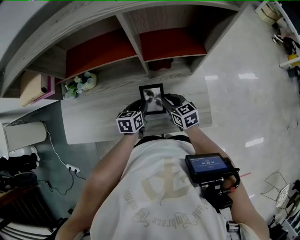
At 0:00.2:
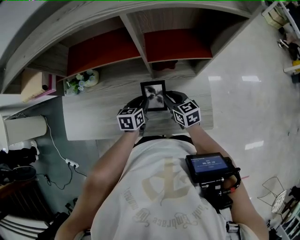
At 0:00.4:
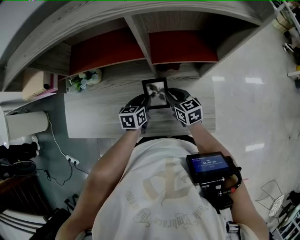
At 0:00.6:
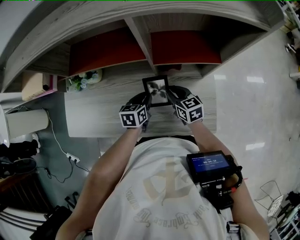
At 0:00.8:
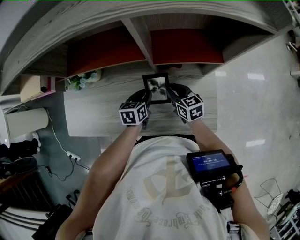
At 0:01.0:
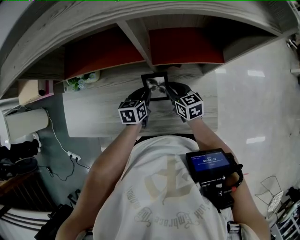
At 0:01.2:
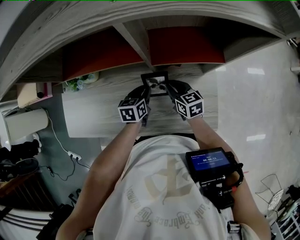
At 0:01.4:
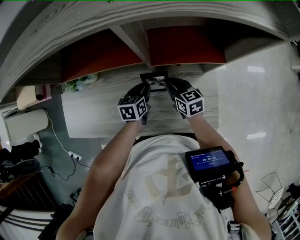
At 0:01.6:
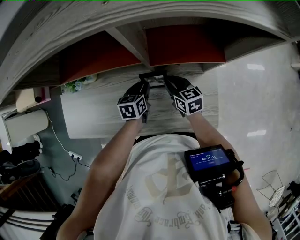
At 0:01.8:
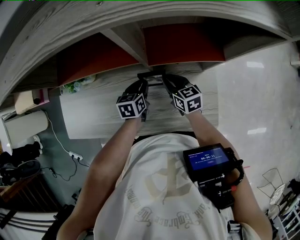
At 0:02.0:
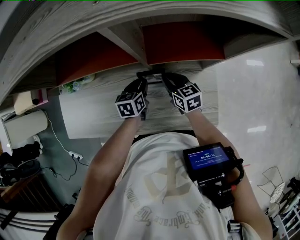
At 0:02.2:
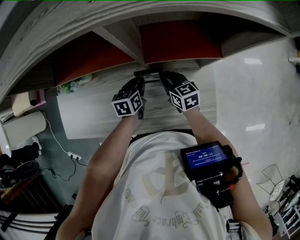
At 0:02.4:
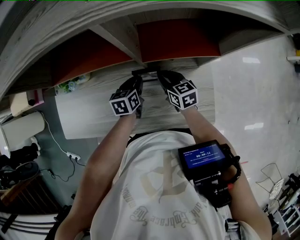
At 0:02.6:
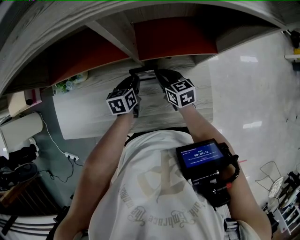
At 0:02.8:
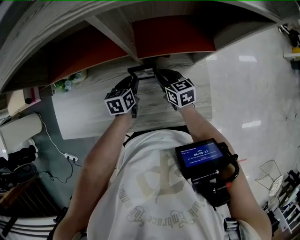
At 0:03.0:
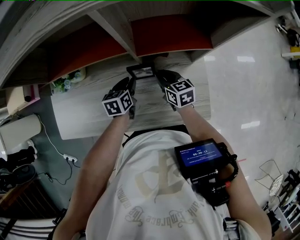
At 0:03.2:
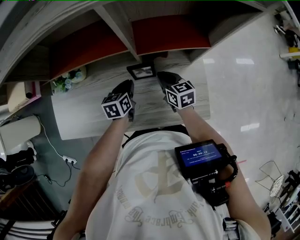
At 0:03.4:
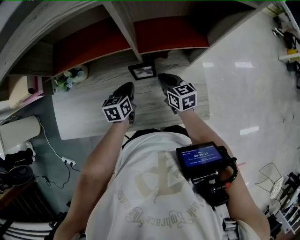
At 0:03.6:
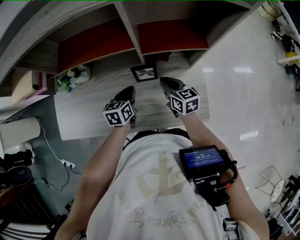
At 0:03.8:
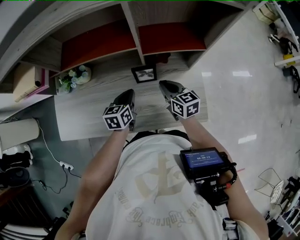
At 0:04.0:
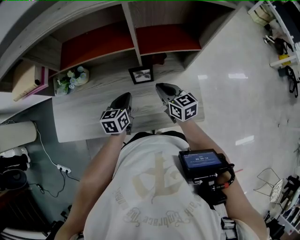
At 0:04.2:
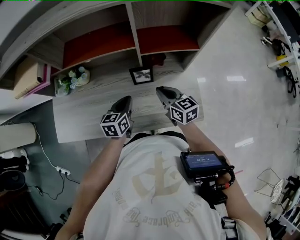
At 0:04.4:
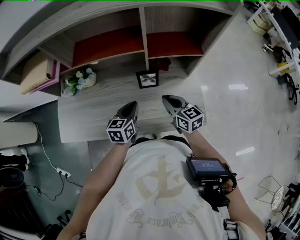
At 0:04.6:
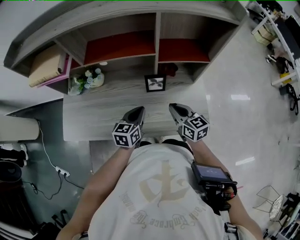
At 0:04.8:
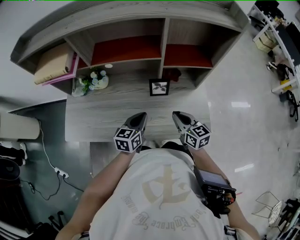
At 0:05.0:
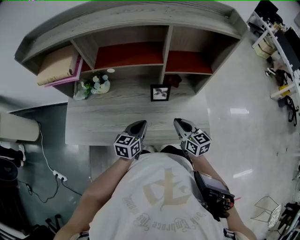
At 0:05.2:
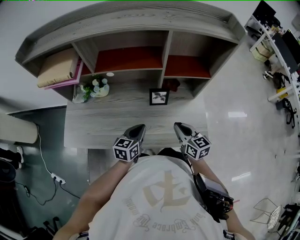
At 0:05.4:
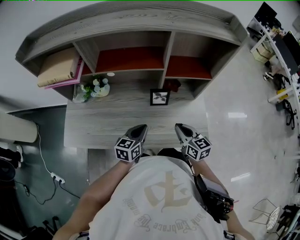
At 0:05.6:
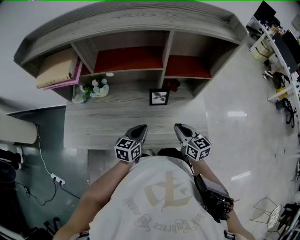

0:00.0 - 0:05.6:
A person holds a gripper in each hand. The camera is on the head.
0:00.0 - 0:01.4: The two grippers go some 10 cm forward.
0:01.4 - 0:02.8: There are only small adjustments of the grippers.
0:02.8 - 0:04.2: The right gripper heads upward and backward, covering approximately 15 cm, while the left gripper goes some 15 cm backward and upward, and closes.
0:04.2 - 0:05.6: The two grippers go approximately 10 cm backward.

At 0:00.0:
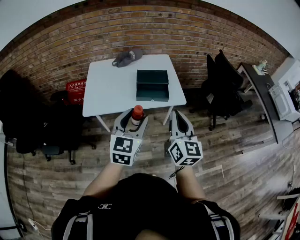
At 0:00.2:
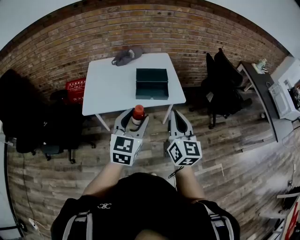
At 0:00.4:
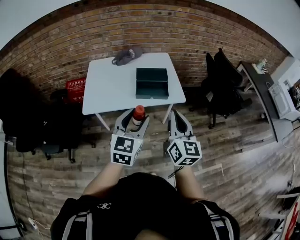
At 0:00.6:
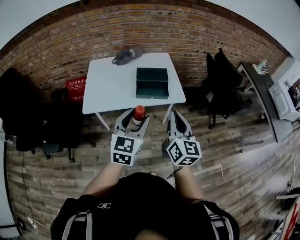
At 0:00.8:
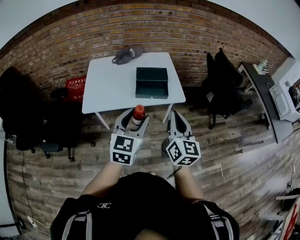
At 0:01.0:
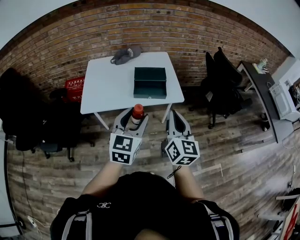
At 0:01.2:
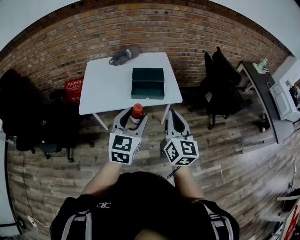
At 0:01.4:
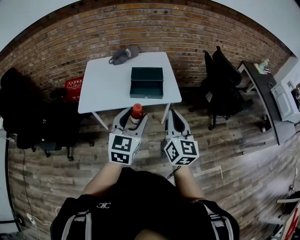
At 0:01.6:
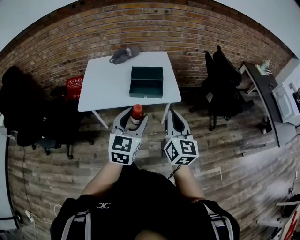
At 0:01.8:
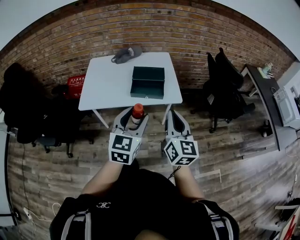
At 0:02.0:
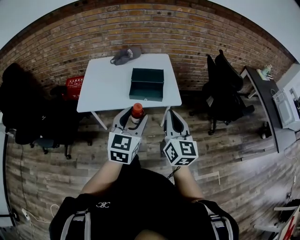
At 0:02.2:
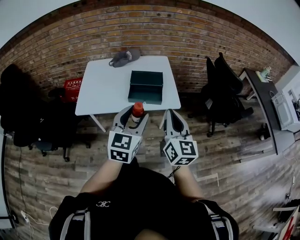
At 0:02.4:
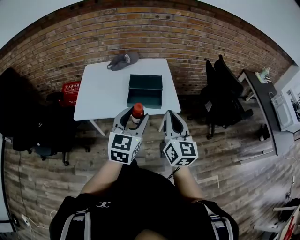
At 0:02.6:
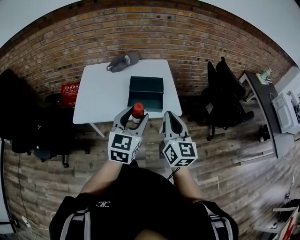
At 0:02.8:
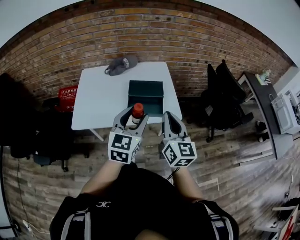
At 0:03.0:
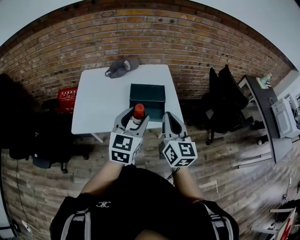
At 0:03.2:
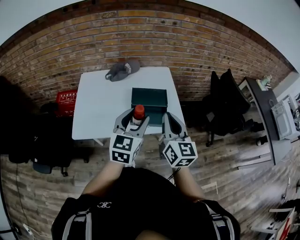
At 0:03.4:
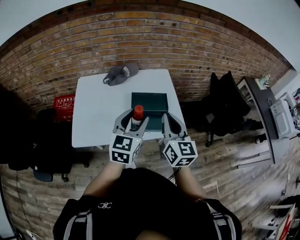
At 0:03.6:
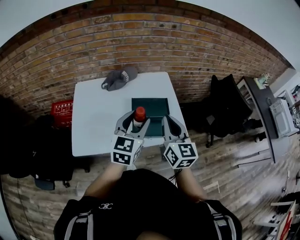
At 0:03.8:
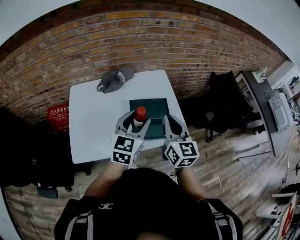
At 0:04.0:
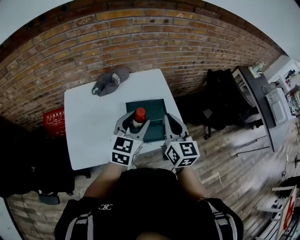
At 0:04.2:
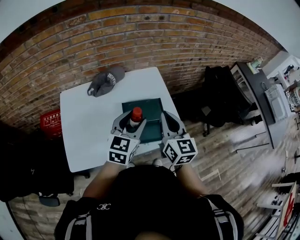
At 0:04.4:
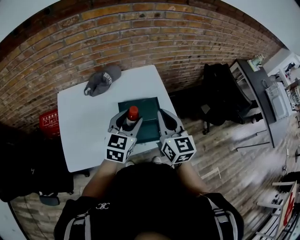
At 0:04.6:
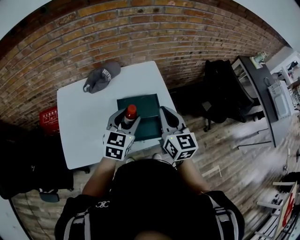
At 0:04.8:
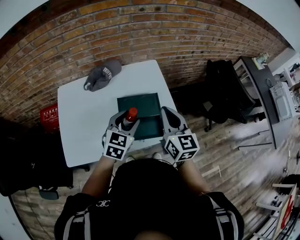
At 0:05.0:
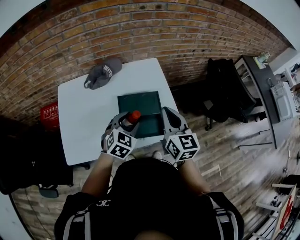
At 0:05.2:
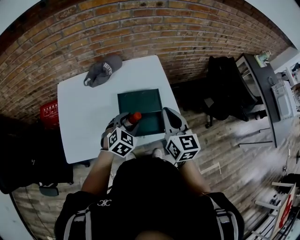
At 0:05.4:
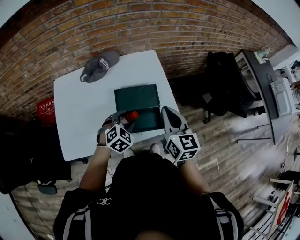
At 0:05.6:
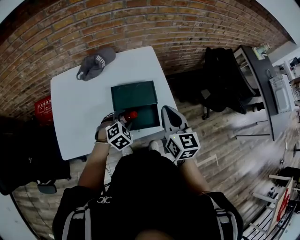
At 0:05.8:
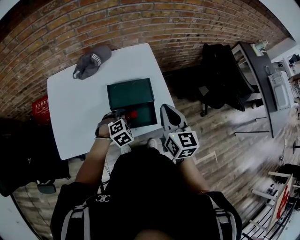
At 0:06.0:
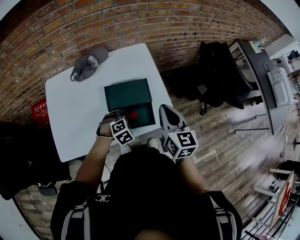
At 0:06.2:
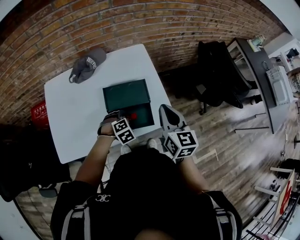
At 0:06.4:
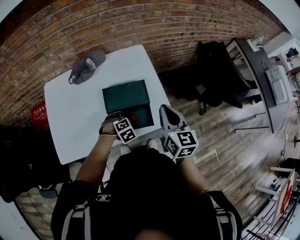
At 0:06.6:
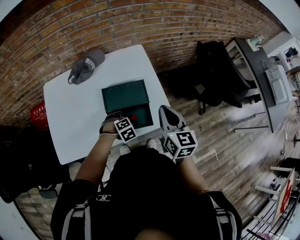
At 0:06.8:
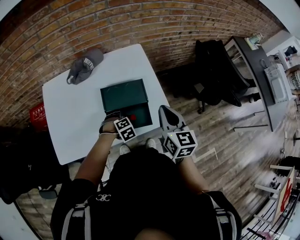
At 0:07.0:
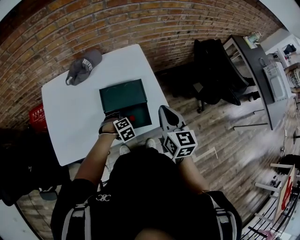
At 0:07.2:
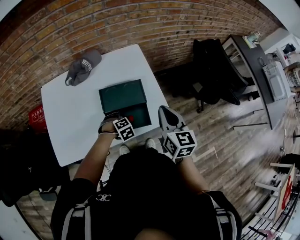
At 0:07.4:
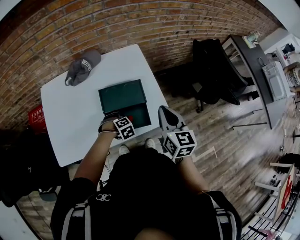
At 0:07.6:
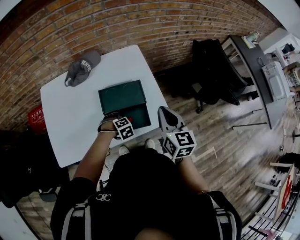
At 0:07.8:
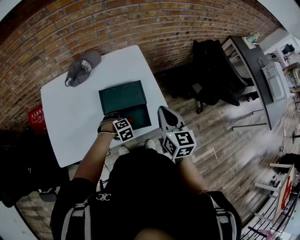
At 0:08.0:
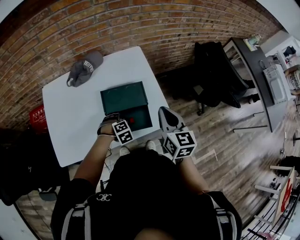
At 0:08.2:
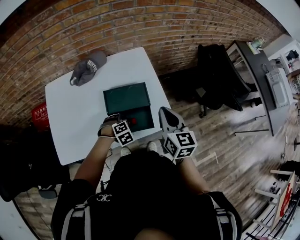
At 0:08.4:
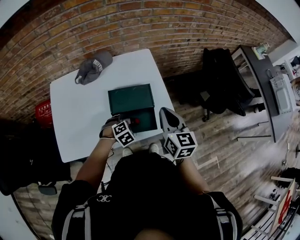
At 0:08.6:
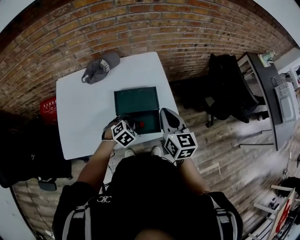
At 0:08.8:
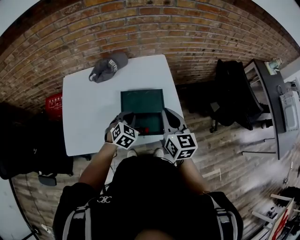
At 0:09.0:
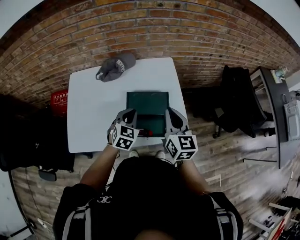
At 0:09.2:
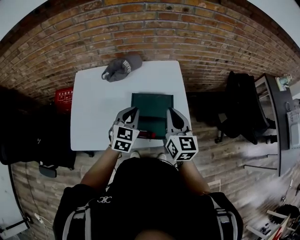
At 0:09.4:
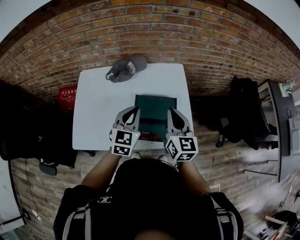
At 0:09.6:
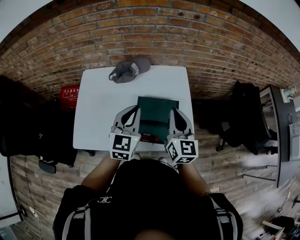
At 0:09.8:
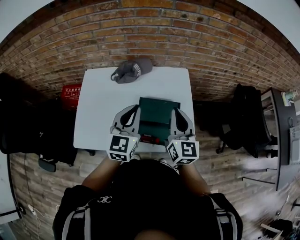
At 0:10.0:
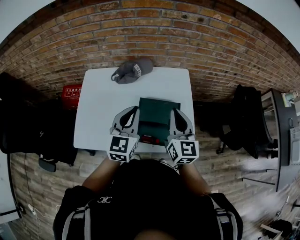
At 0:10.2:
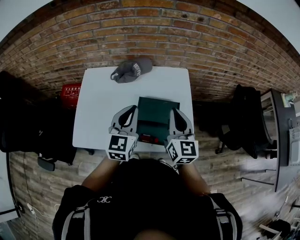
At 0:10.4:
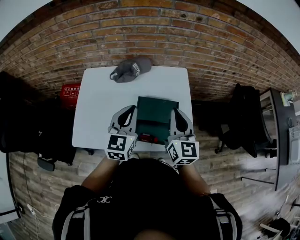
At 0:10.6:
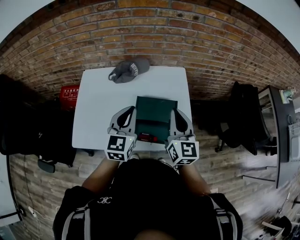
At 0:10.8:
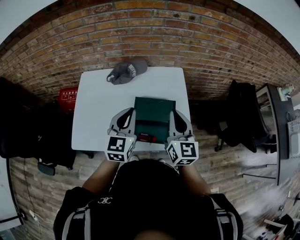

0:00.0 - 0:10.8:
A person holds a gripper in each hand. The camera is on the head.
0:00.0 - 0:01.6: The grippers both shift to the right by approximately 5 cm.
0:01.6 - 0:03.0: Both grippers travel together forward, approximately 15 cm.
0:03.0 - 0:04.6: The left gripper moves forward and downward, about 25 cm. The right gripper shifts approximately 20 cm forward.
0:04.6 - 0:06.2: The left gripper is displaced downward by roughly 20 cm, and tips its fingers downward by some 50 degrees. Meanwhile the right gripper goes approximately 10 cm to the right and downward.
0:06.2 - 0:07.8: The left gripper is displaced downward by about 5 cm.
0:07.8 - 0:09.2: The left gripper heads upward, covering about 20 cm, points its fingers some 50 degrees further upward, and closes its fingers; the right gripper ends up some 10 cm from where it was.
0:09.2 - 0:10.8: The left gripper is displaced upward by some 10 cm.

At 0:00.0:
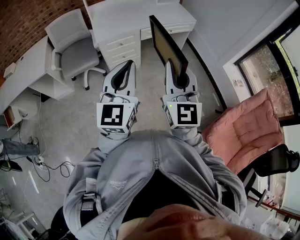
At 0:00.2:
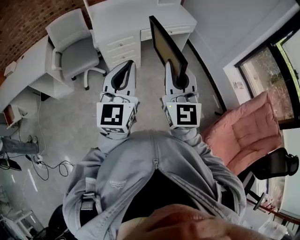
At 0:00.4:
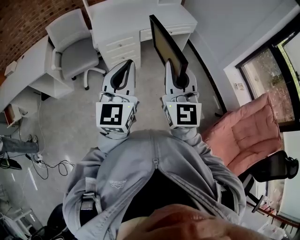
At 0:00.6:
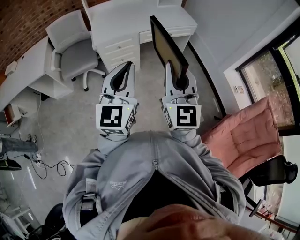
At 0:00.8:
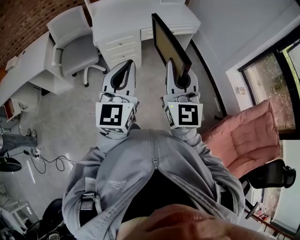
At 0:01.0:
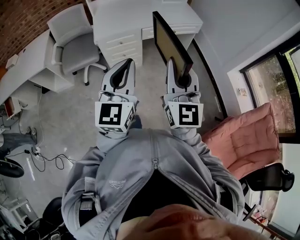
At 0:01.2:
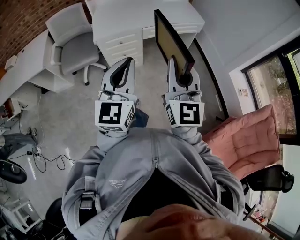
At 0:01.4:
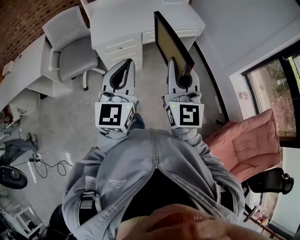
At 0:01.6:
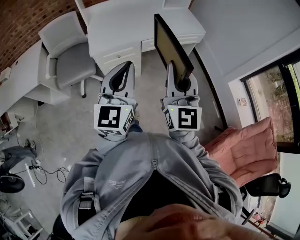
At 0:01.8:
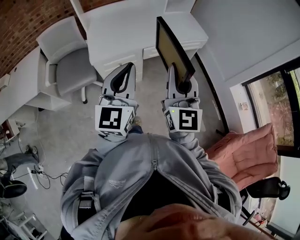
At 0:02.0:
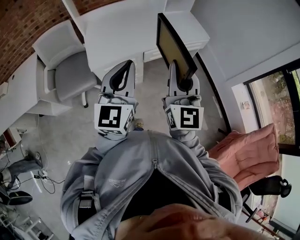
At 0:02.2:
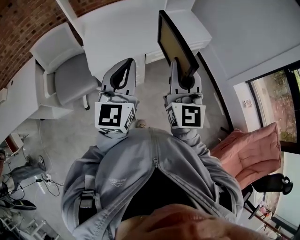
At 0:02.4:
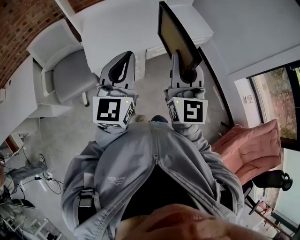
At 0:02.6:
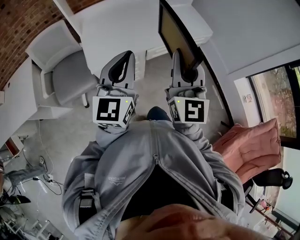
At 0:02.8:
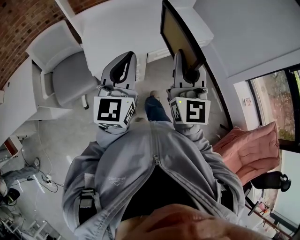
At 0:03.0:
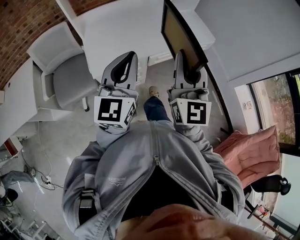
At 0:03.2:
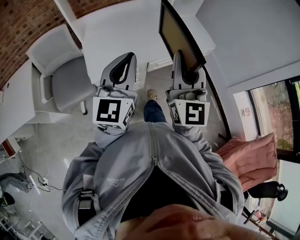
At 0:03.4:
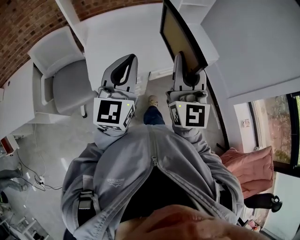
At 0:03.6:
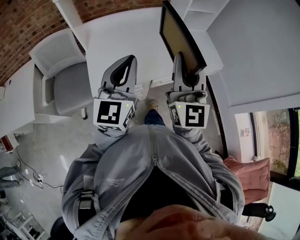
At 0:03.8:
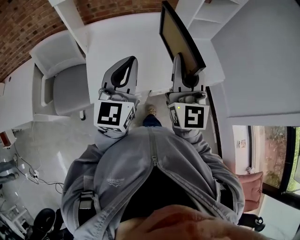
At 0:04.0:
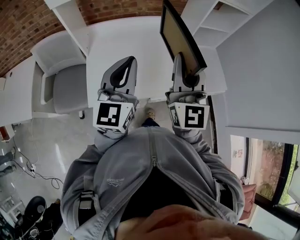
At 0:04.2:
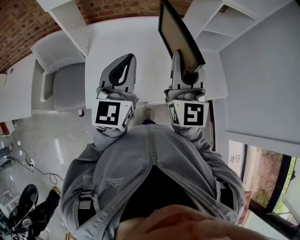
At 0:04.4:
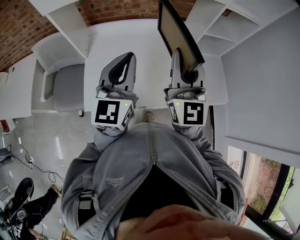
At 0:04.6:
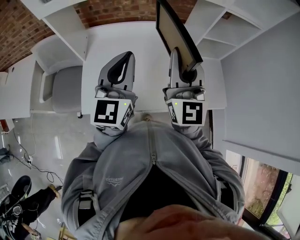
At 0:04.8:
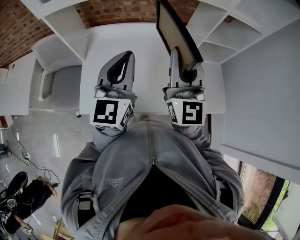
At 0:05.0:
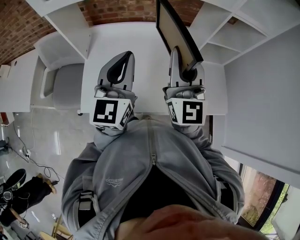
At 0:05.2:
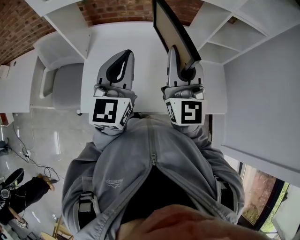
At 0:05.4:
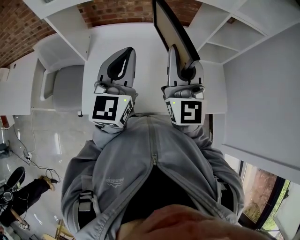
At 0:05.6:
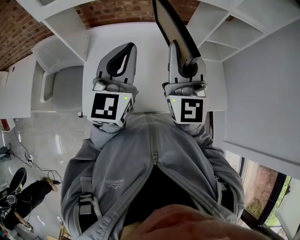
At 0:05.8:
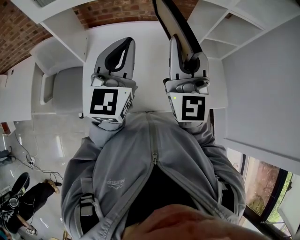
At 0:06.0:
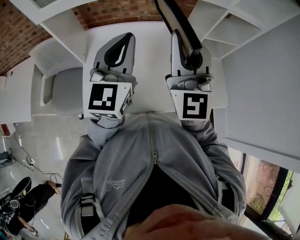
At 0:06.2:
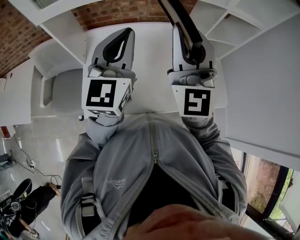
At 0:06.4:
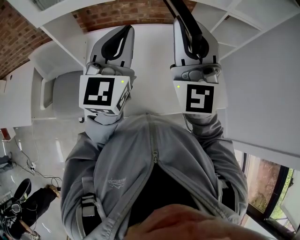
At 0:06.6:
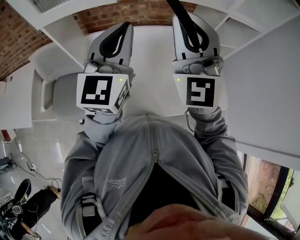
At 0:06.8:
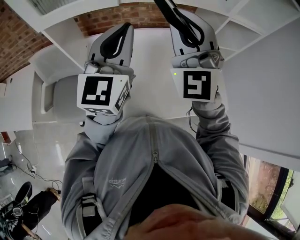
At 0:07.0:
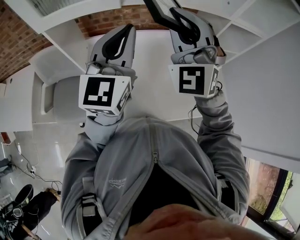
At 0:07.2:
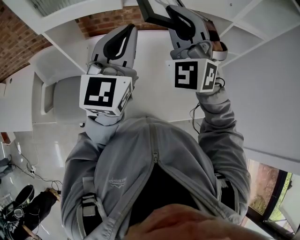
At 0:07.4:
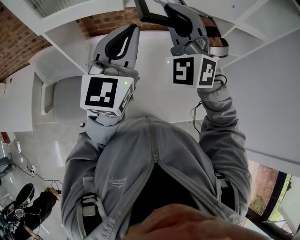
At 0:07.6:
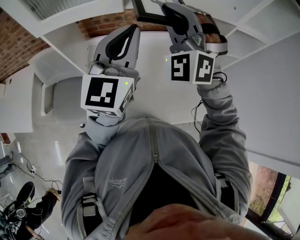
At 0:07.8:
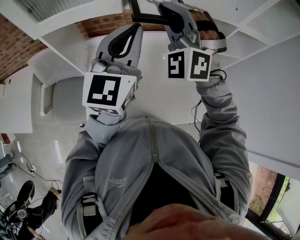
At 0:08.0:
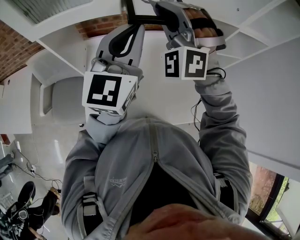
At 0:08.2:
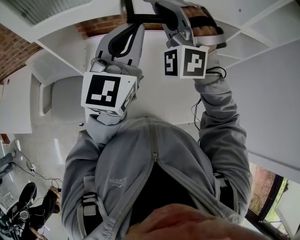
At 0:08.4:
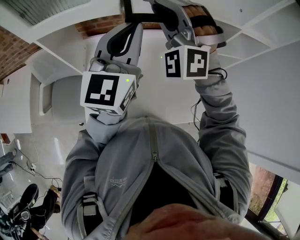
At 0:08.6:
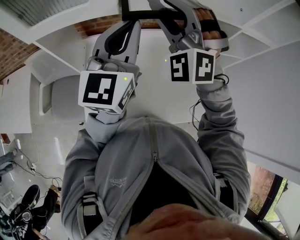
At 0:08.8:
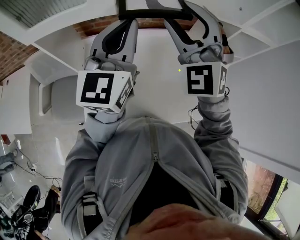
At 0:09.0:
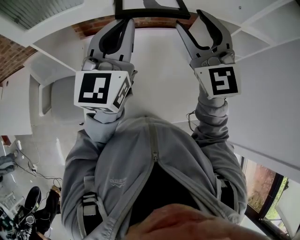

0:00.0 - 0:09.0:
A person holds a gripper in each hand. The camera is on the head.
0:00.0 - 0:01.6: Both grippers travel together forward, some 20 cm.
0:01.6 - 0:03.0: The two grippers go about 25 cm forward and to the left.
0:03.0 - 0:04.4: Both grippers move forward, some 35 cm. The right gripper rotates approximately 20 degrees.
0:04.4 - 0:06.0: The left gripper shifts about 10 cm forward and upward, while the right gripper goes about 5 cm upward.
0:06.0 - 0:07.6: The right gripper shifts roughly 15 cm forward and to the left, and rolls counterclockwise, seen from behind, by about 50 degrees. The left gripper shifts approximately 5 cm forward.
0:07.6 - 0:09.0: The left gripper heads forward, covering approximately 5 cm, while the right gripper rolls clockwise, seen from behind, by about 40 degrees, and opens up.
